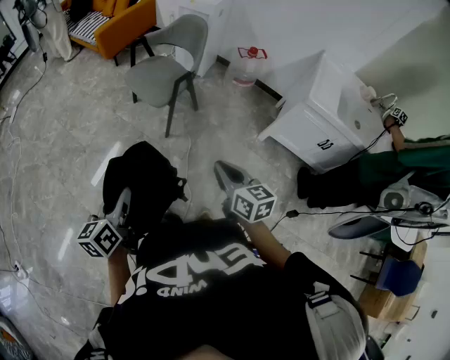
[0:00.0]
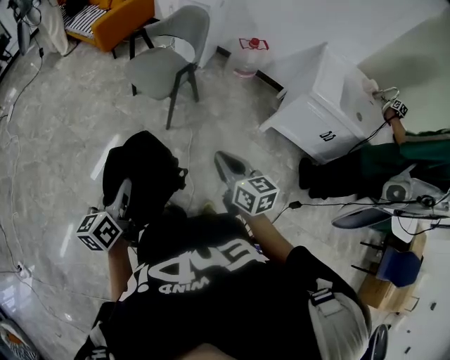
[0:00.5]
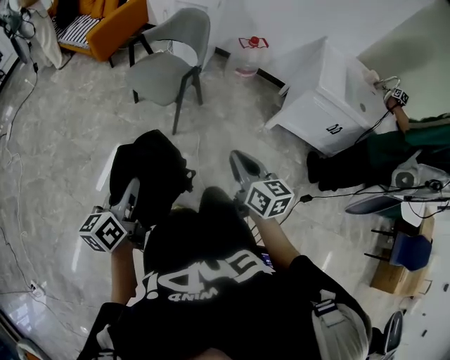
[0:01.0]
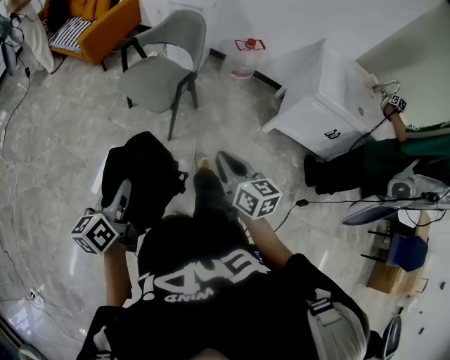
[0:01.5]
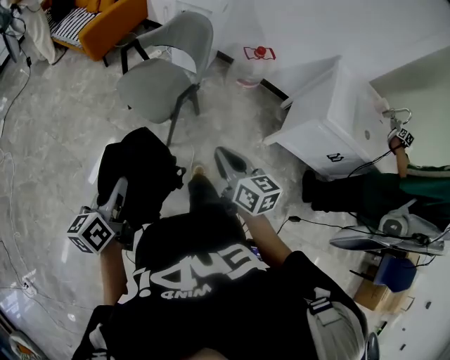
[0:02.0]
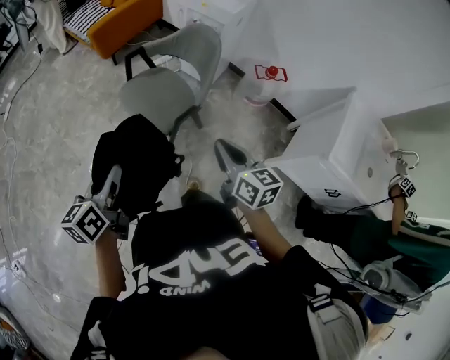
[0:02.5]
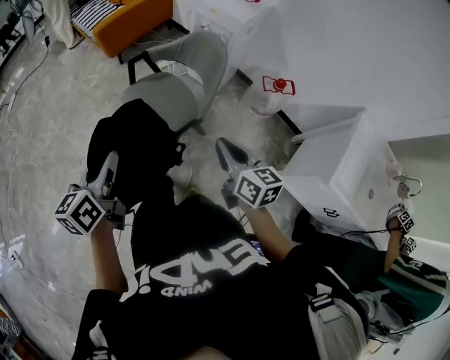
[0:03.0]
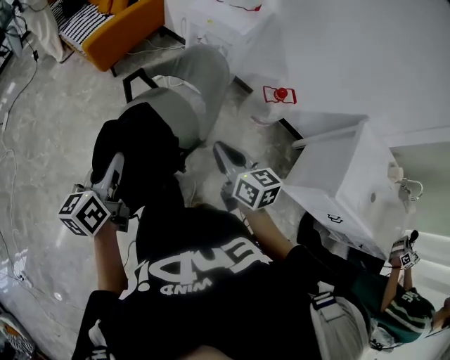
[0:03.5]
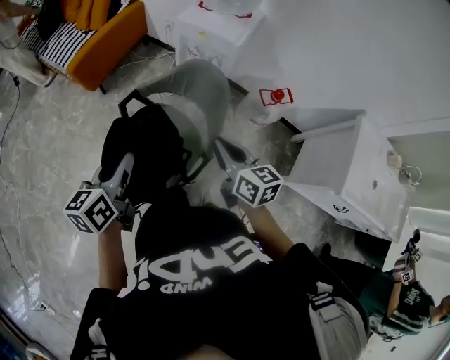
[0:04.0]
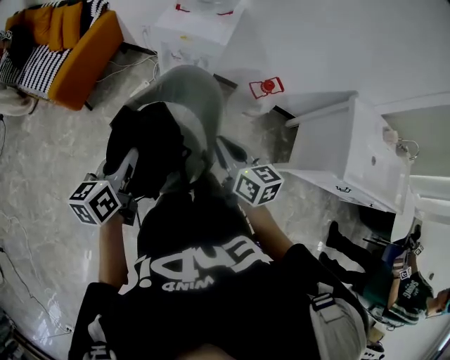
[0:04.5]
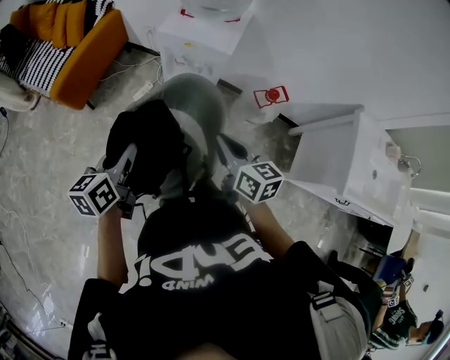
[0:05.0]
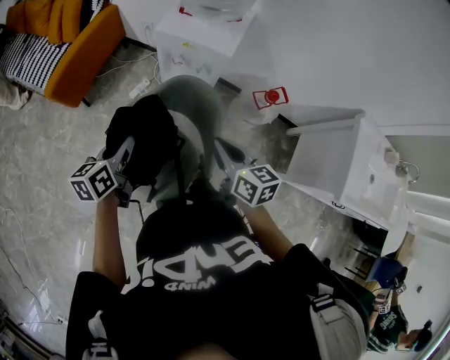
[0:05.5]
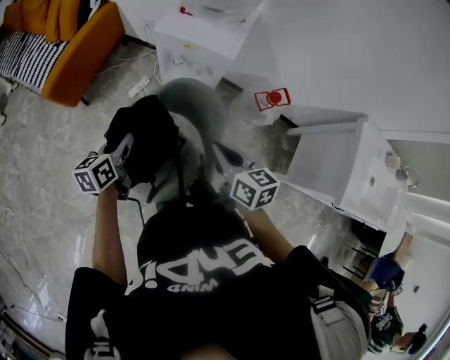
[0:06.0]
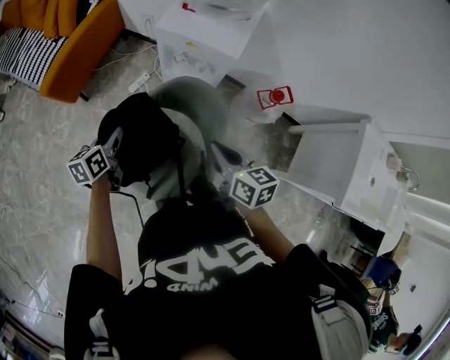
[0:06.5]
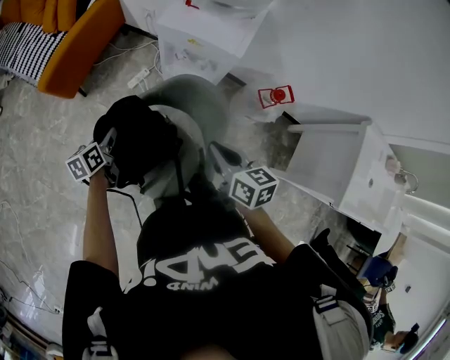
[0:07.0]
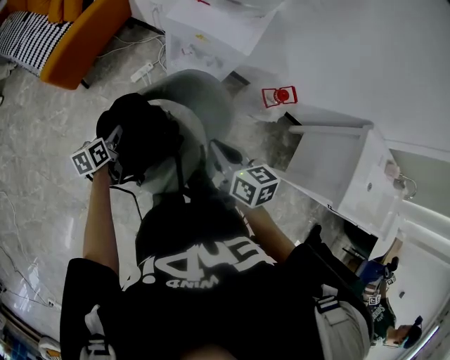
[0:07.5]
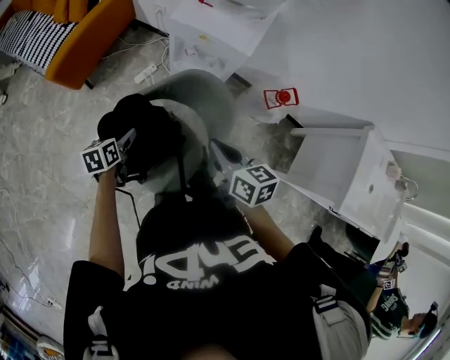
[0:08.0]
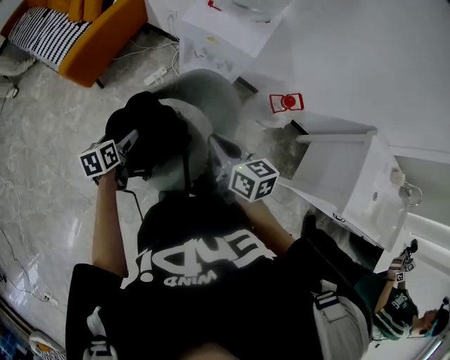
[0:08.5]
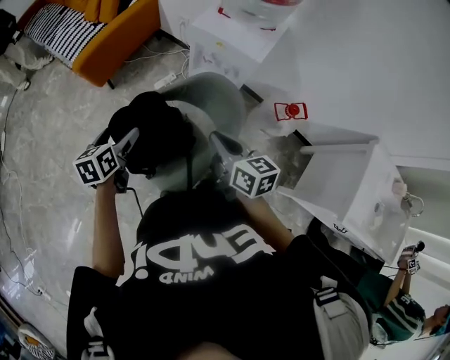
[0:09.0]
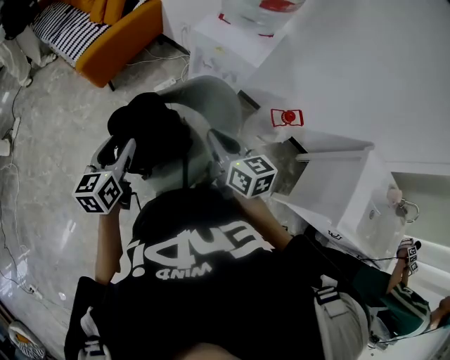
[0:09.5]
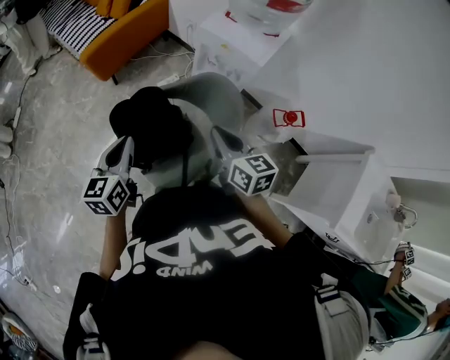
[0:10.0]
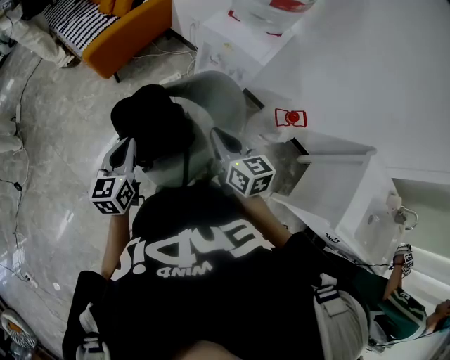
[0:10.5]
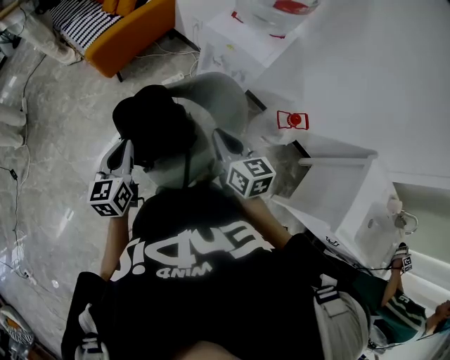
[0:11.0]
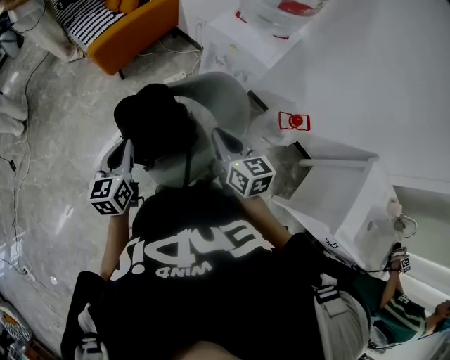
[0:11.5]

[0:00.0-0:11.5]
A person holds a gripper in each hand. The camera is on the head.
0.0 to 2.0 s: The grippers both shift forward by about 25 cm.
2.0 to 4.0 s: The two grippers travel together, forward, some 50 cm.
4.0 to 6.0 s: The left gripper moves forward and downward, roughly 30 cm. The right gripper travels forward by about 15 cm.
6.0 to 7.5 s: The left gripper moves downward and to the left, about 15 cm.
7.5 to 9.5 s: The left gripper travels upward and backward by roughly 25 cm, changes its angle by approximately 30 degrees, and opens, then closes once more. The right gripper goes some 5 cm upward.
9.5 to 11.5 s: The left gripper closes.

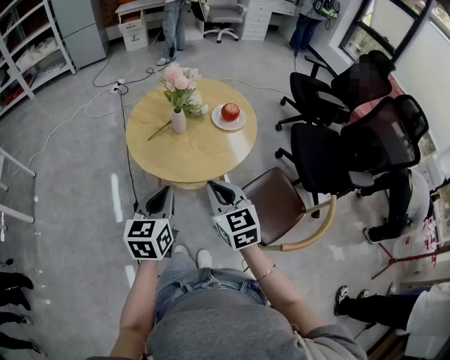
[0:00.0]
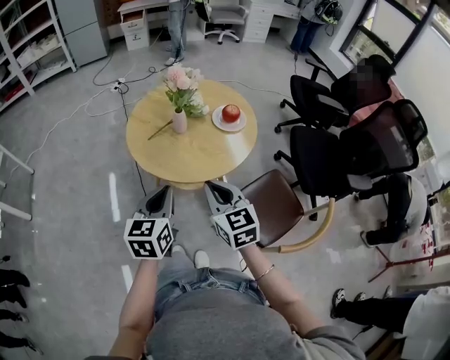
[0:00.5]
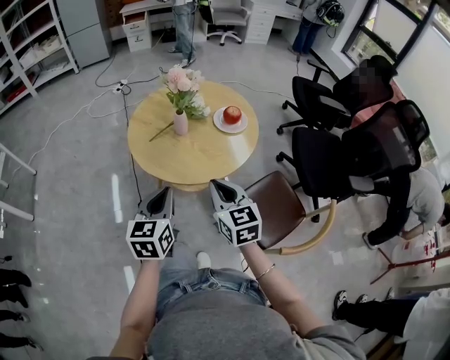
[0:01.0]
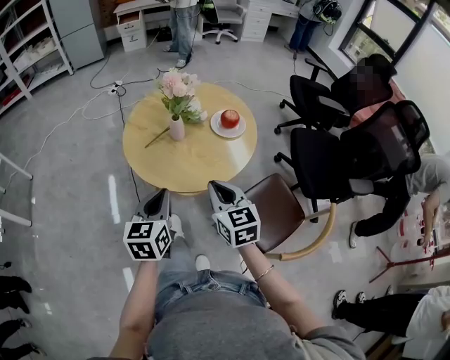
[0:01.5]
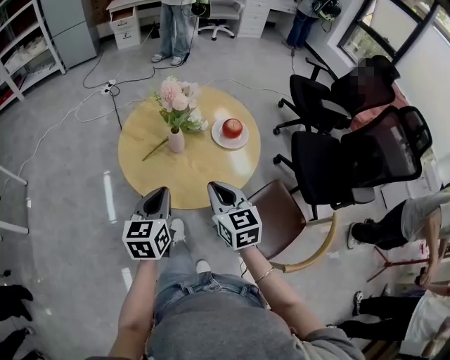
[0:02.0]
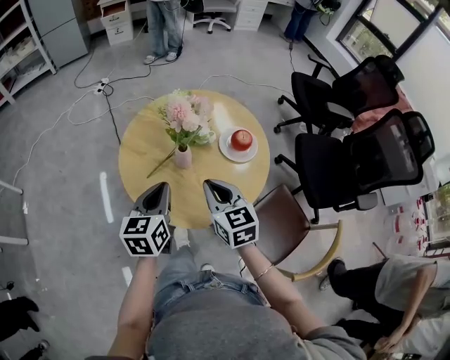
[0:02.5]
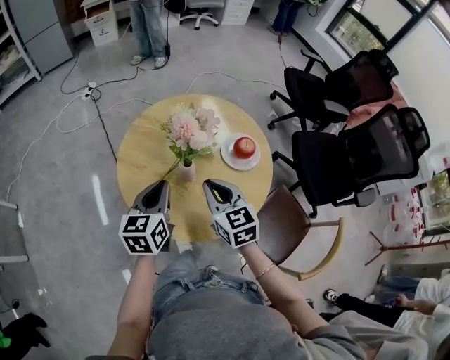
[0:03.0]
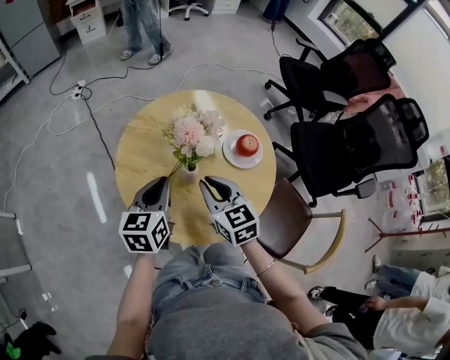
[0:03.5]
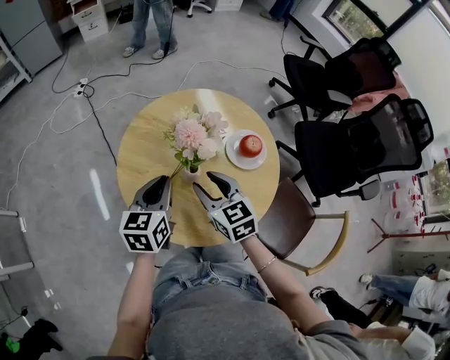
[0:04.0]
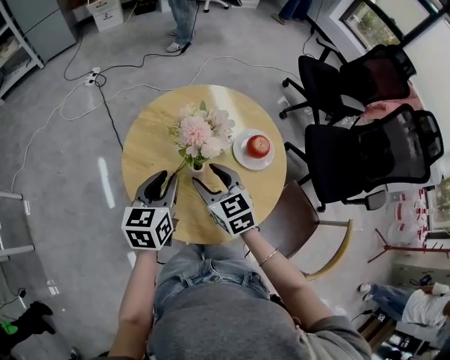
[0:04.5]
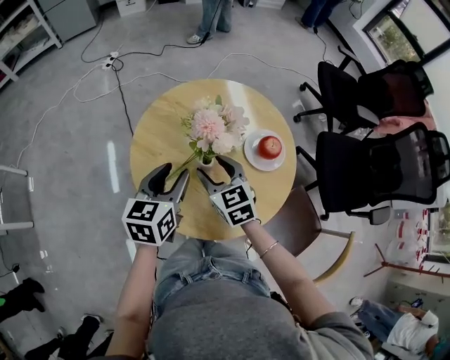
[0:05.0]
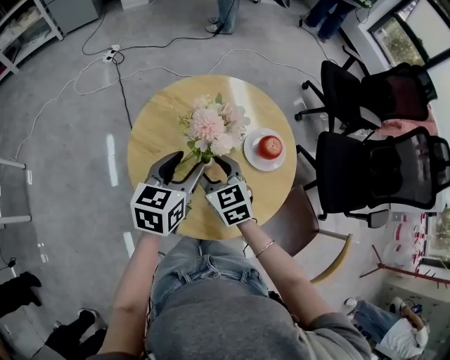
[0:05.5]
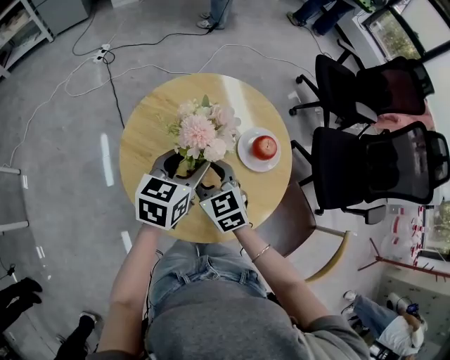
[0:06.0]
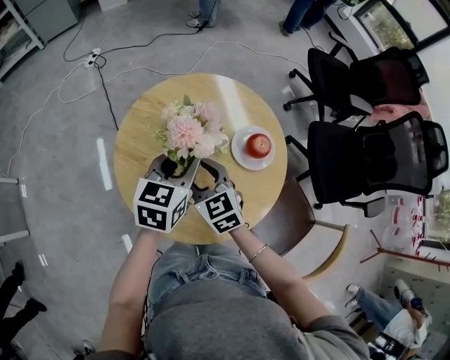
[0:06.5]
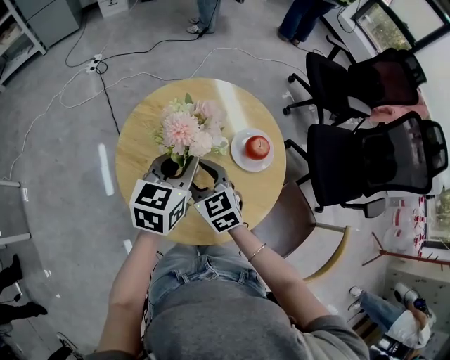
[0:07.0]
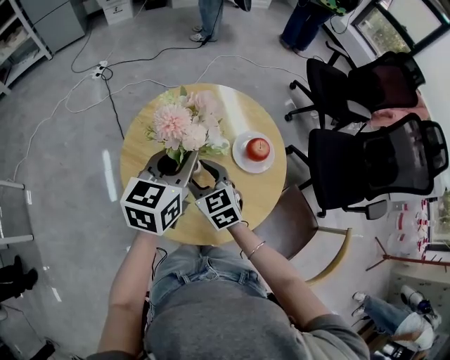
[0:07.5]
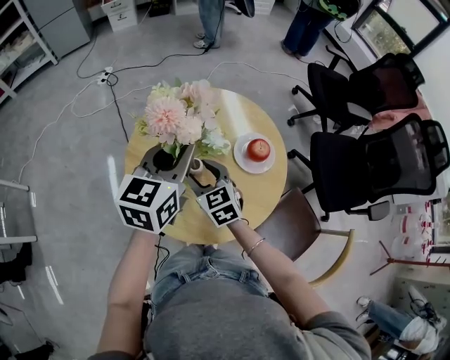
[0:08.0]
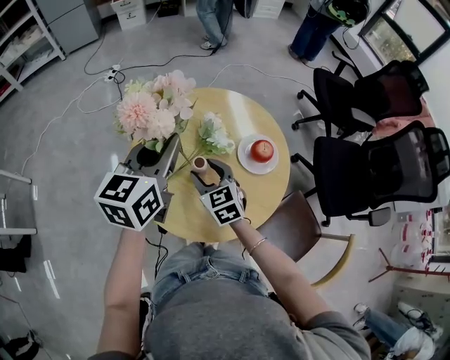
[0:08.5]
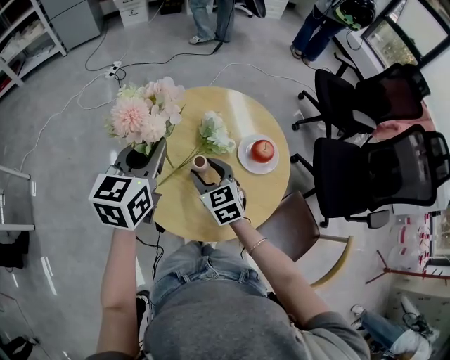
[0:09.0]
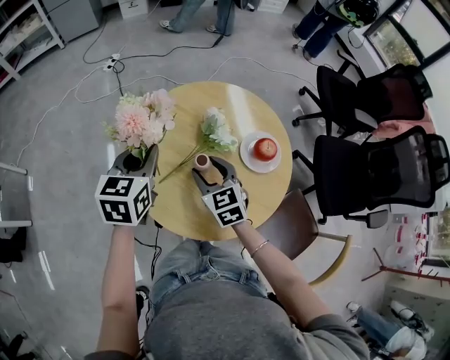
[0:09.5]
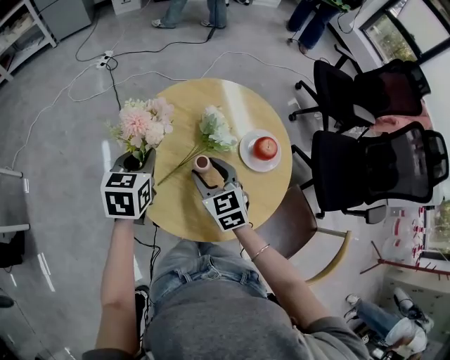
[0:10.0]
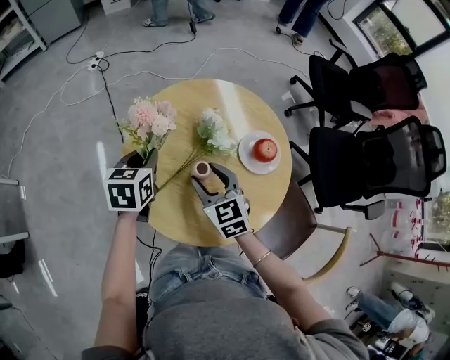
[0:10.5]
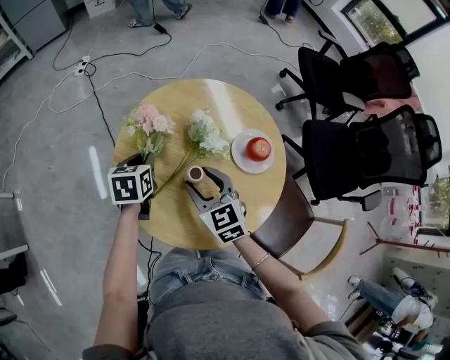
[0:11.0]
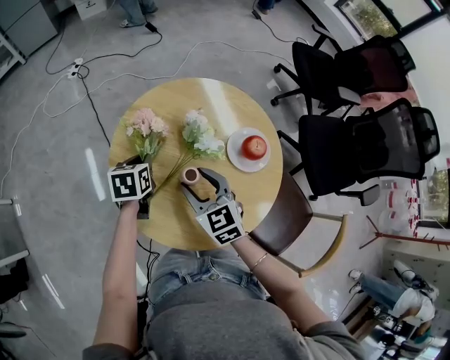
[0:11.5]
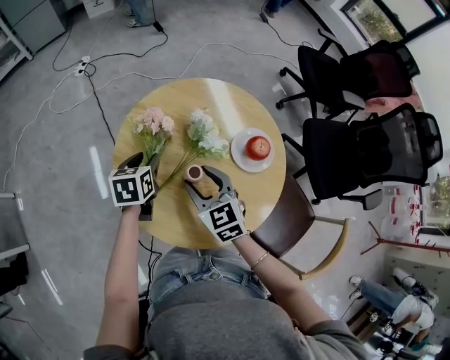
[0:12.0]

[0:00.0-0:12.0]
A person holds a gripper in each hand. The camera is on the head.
0.0 to 2.0 s: Both grippers travel together forward, some 10 cm.
2.0 to 4.0 s: The right gripper is displaced forward and to the left by about 20 cm, and opens, while the left gripper travels forward by some 20 cm.
4.0 to 6.0 s: The left gripper moves to the right, about 10 cm, and opens up.
6.0 to 8.0 s: The left gripper is displaced upward by roughly 10 cm, and closes its fingers.
8.0 to 10.0 s: The left gripper goes approximately 15 cm to the left and downward, and rotates about 30 degrees.
10.0 to 12.0 s: The left gripper is displaced downward by about 10 cm, and opens.

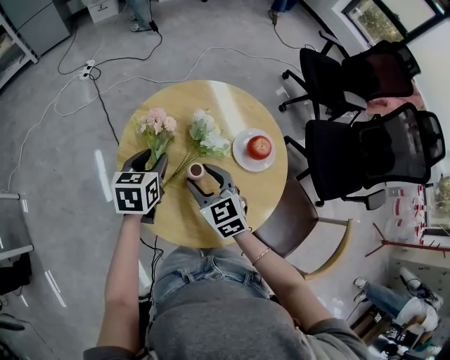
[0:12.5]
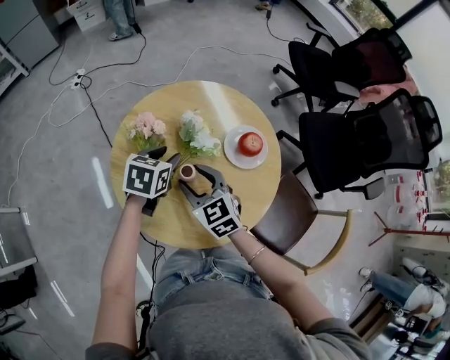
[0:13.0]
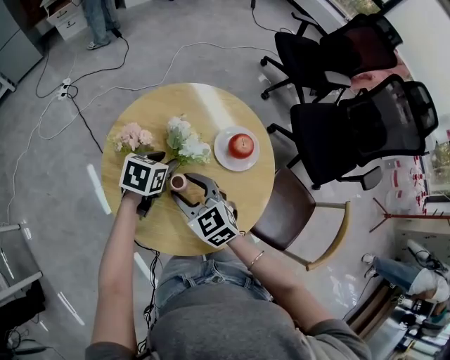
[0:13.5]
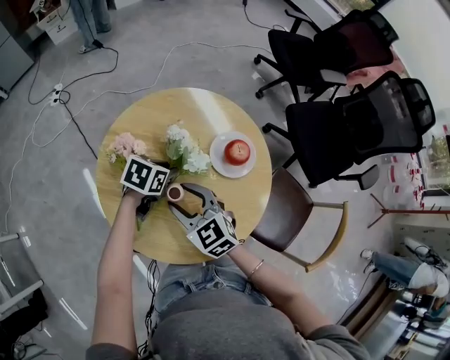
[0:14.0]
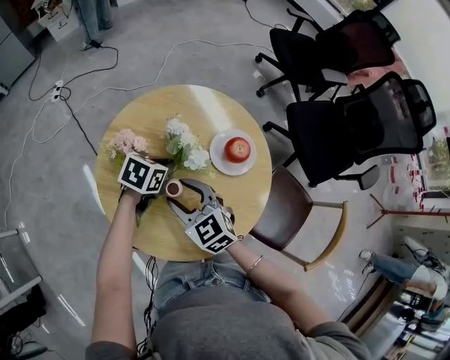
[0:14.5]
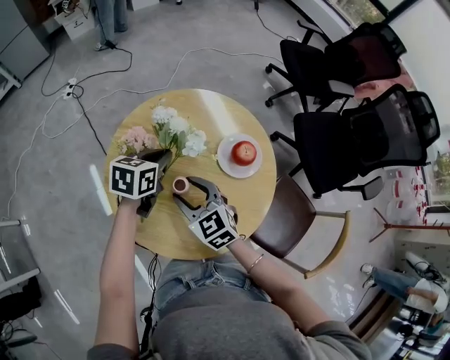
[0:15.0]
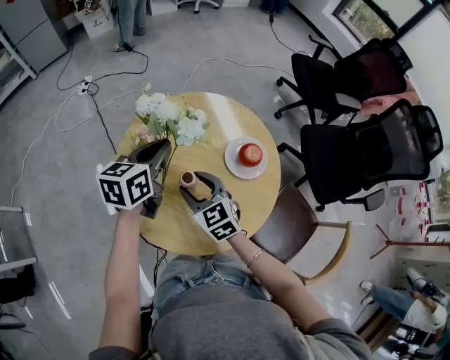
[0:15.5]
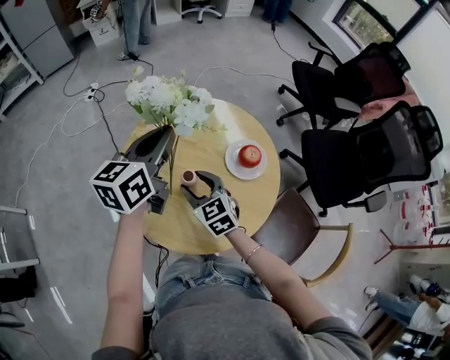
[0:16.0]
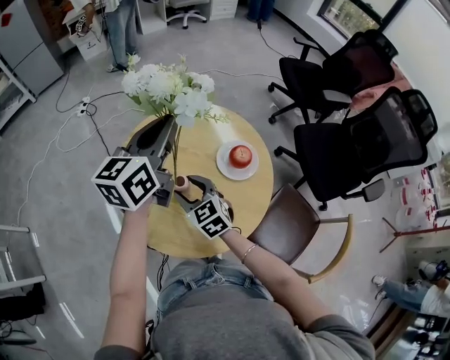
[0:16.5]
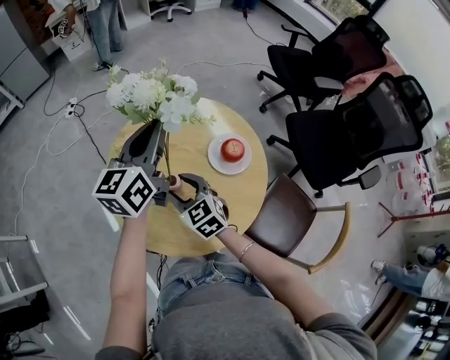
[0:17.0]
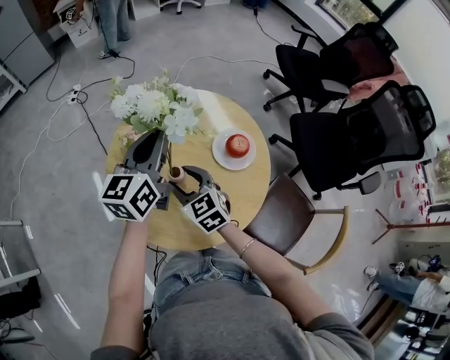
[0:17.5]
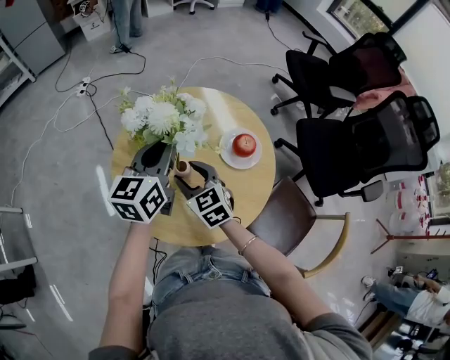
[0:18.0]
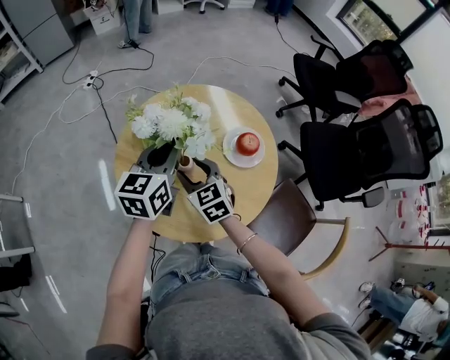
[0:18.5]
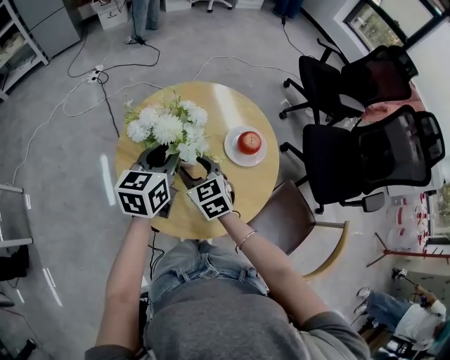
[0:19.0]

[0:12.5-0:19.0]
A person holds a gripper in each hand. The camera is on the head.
12.5 to 14.5 s: The left gripper moves approximately 15 cm, turns by about 40 degrees, and closes its fingers.
14.5 to 17.0 s: The left gripper moves upward, approximately 25 cm, and tips its fingers upward by approximately 50 degrees.
17.0 to 19.0 s: The left gripper is displaced downward and backward by about 10 cm.
